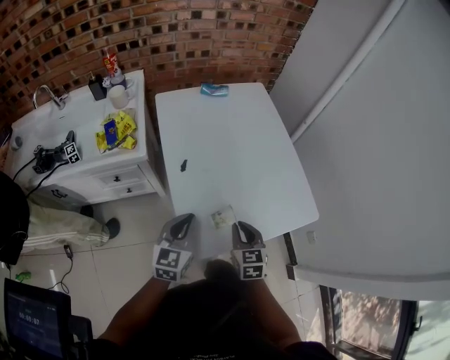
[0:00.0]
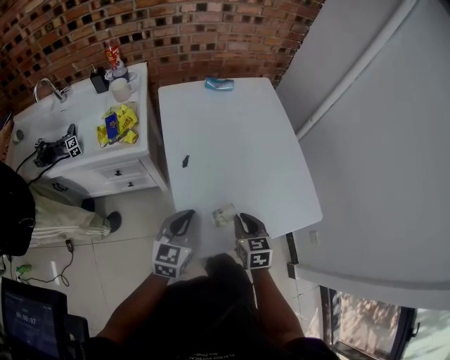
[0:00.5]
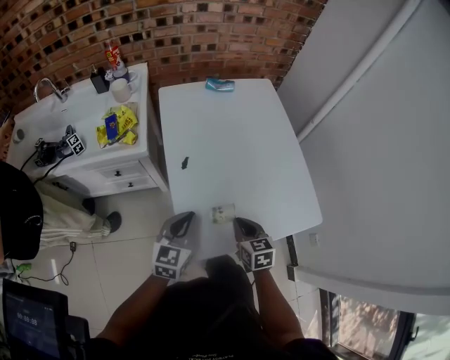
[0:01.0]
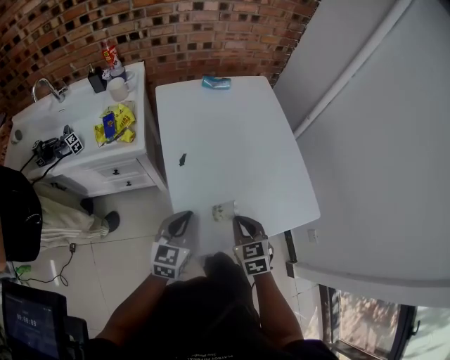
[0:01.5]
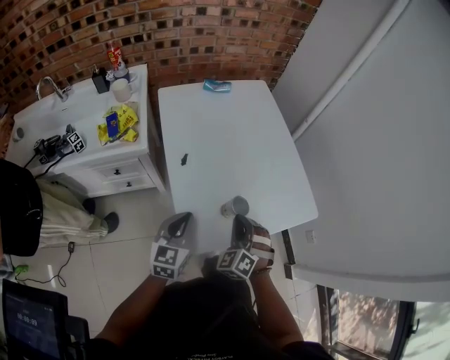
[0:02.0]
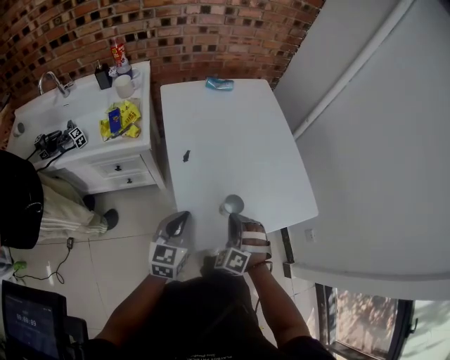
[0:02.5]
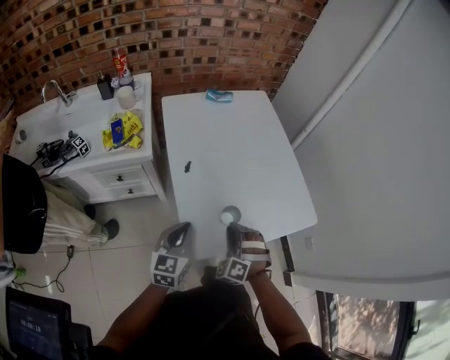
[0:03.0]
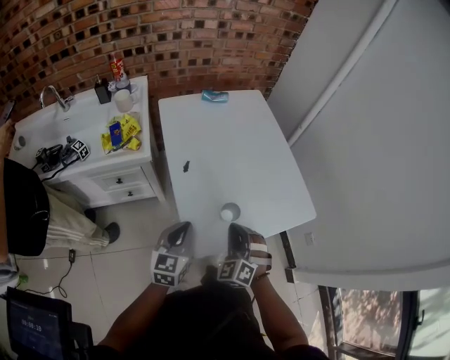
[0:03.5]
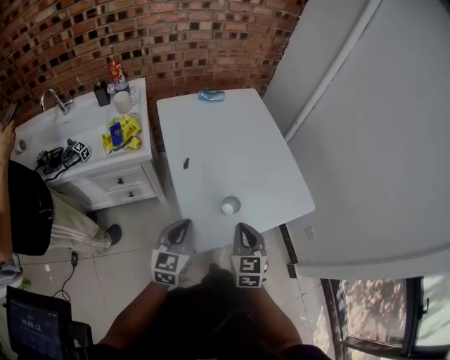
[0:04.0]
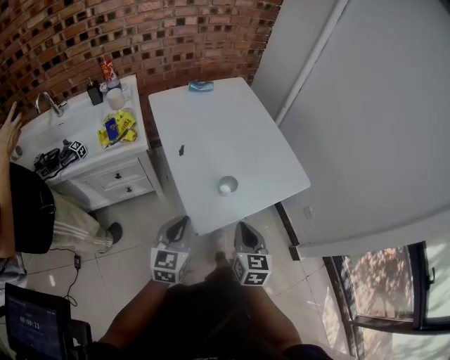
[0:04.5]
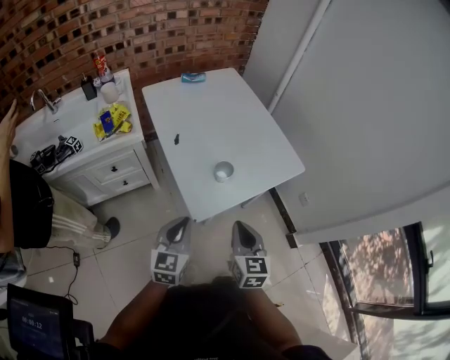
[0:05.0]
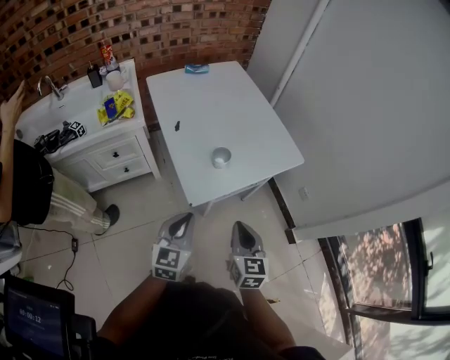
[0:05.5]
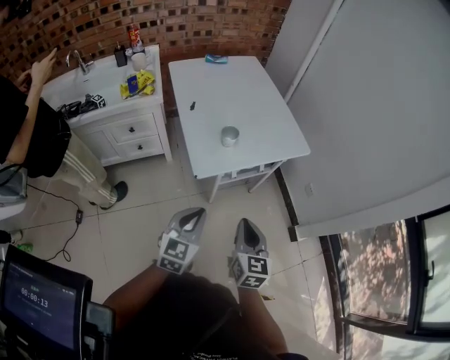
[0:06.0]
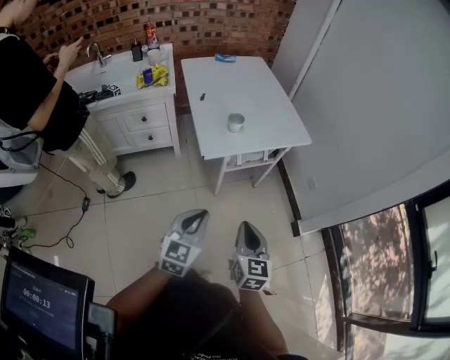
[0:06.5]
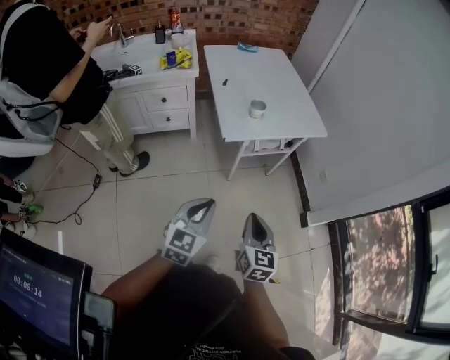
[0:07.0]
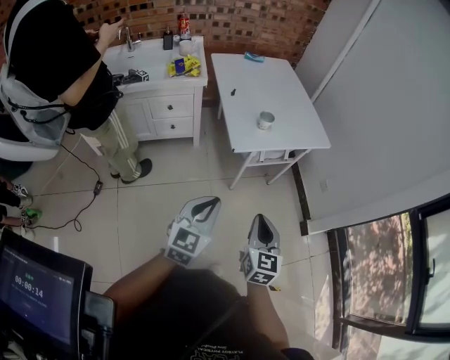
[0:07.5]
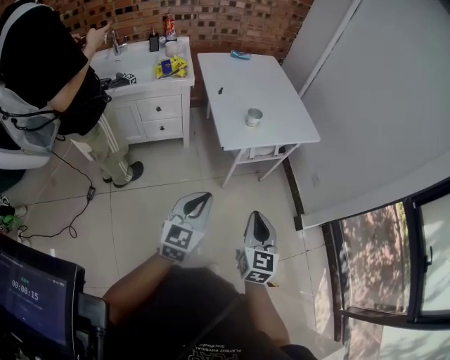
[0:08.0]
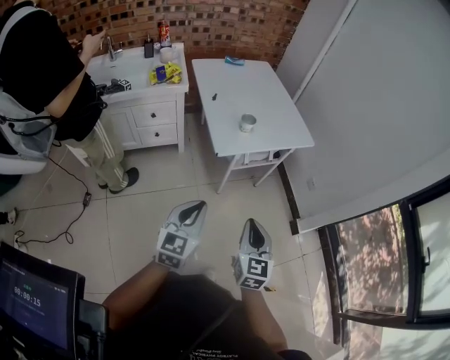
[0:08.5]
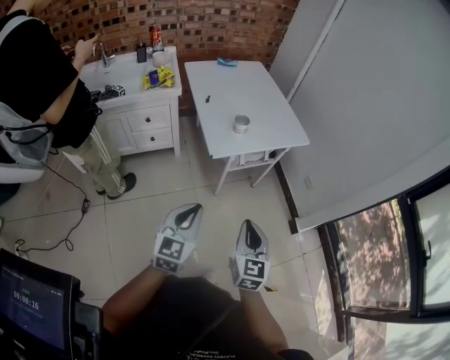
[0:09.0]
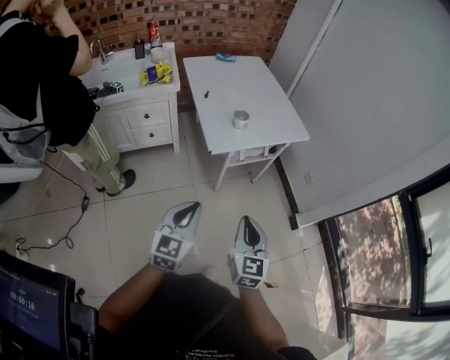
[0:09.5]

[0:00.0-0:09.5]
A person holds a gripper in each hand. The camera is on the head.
0:00.0 to 0:02.0: The right gripper rolls counterclockwise, seen from behind, by roughly 50 degrees.
0:02.0 to 0:04.0: The right gripper shifts approximately 10 cm backward and upward, and twists about 50 degrees clockwise, seen from behind. Meanwhile the left gripper shifts by some 5 cm.
0:04.0 to 0:05.5: Both grippers move backward, some 15 cm.
0:05.5 to 0:07.5: Both grippers move backward, roughly 25 cm.
0:07.5 to 0:09.5: The grippers stay close to where they were, moving slightly.

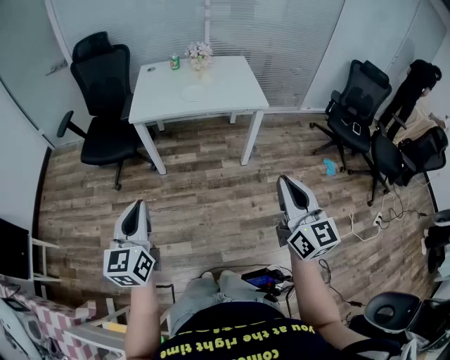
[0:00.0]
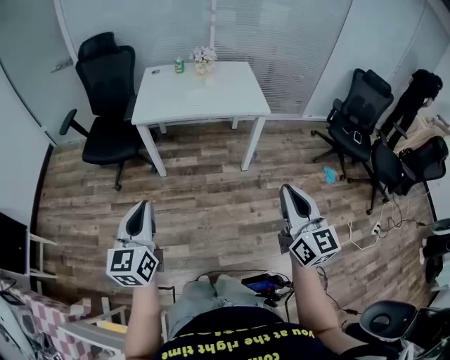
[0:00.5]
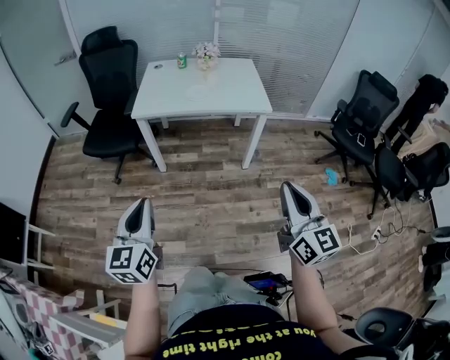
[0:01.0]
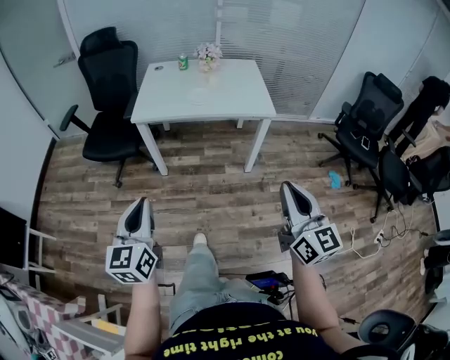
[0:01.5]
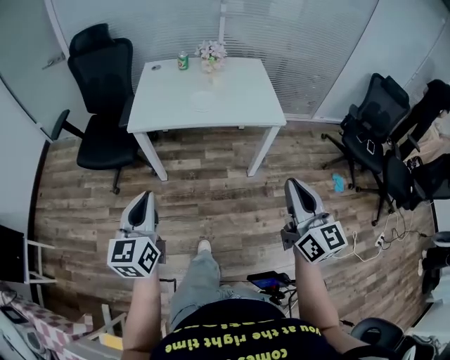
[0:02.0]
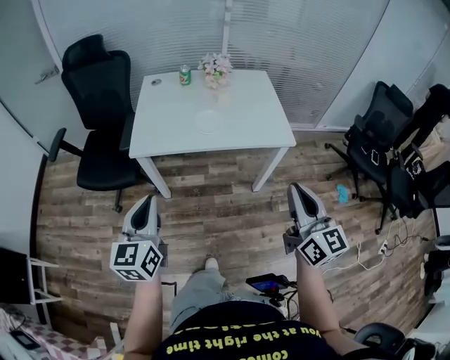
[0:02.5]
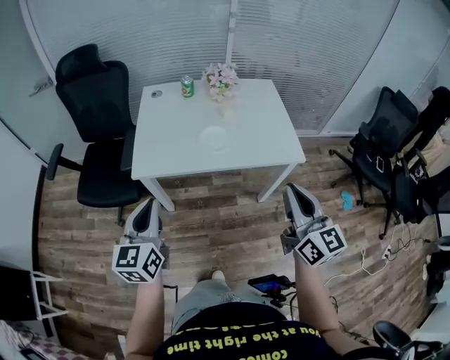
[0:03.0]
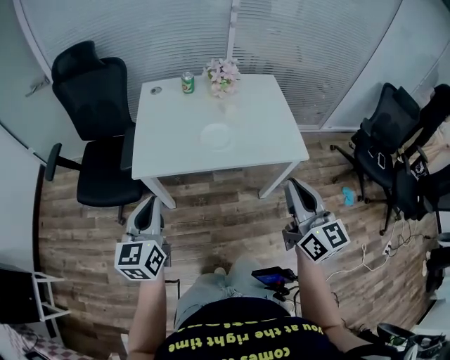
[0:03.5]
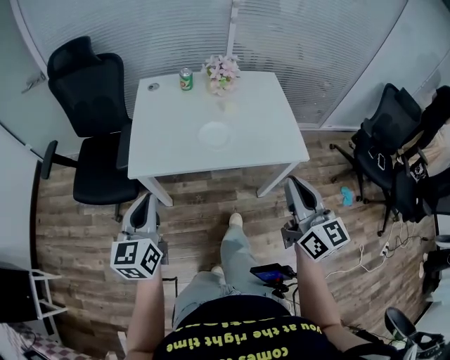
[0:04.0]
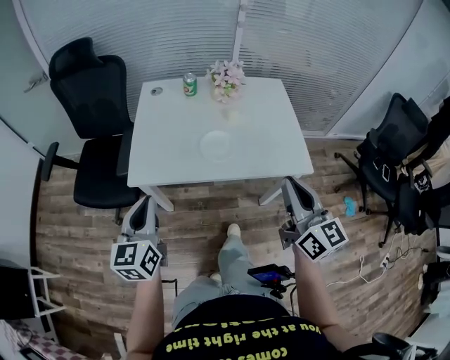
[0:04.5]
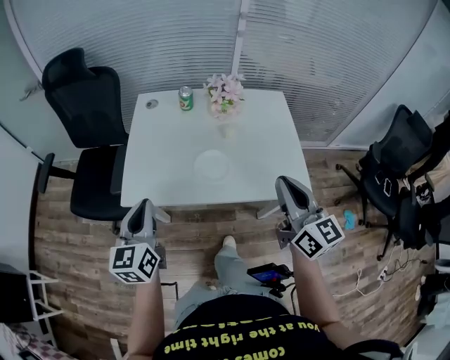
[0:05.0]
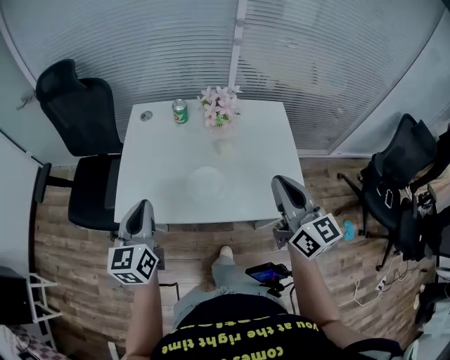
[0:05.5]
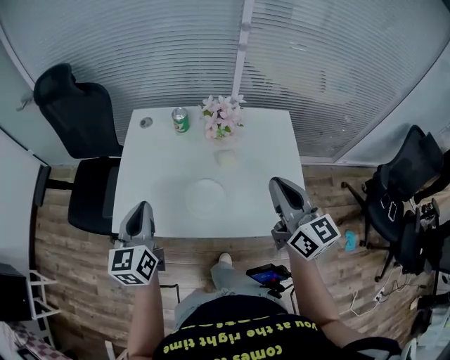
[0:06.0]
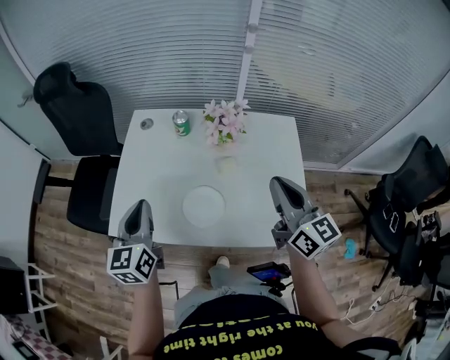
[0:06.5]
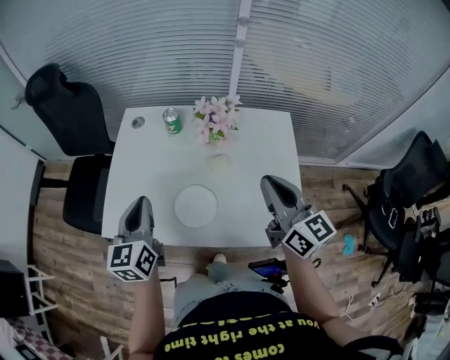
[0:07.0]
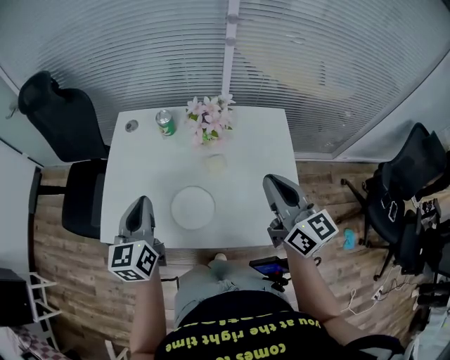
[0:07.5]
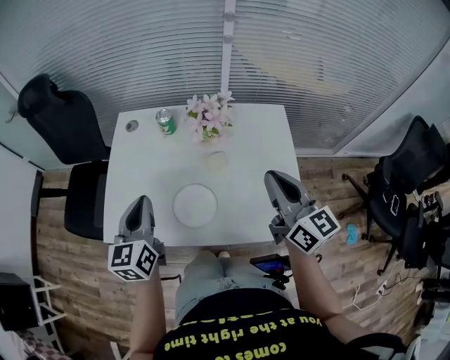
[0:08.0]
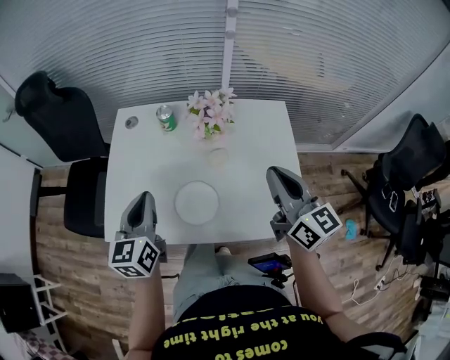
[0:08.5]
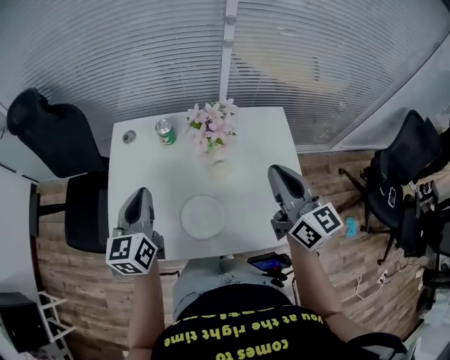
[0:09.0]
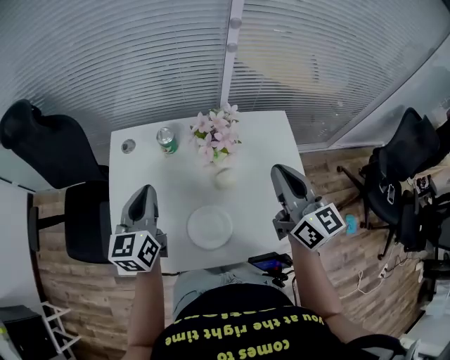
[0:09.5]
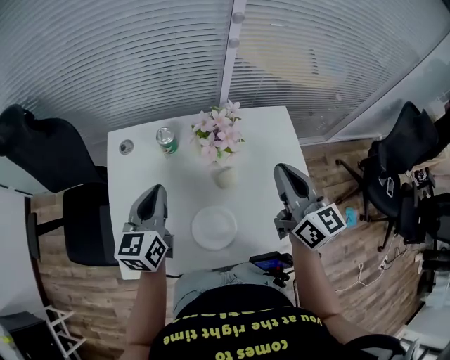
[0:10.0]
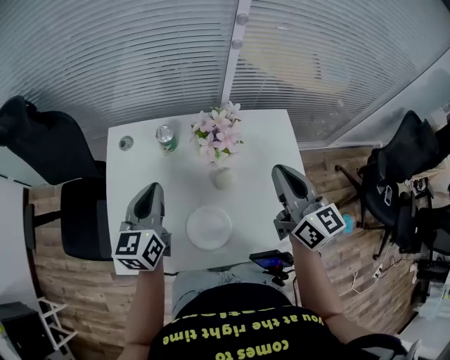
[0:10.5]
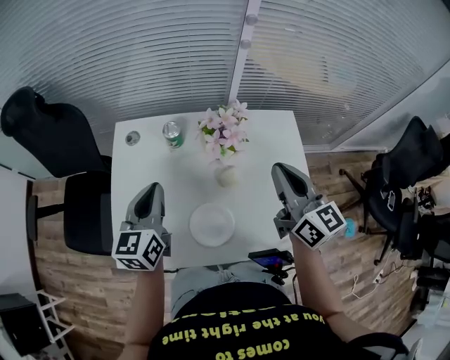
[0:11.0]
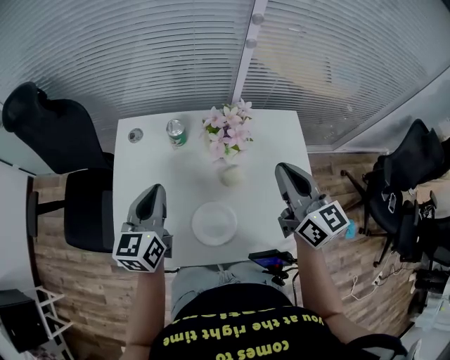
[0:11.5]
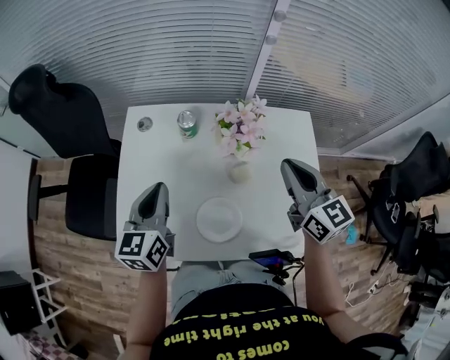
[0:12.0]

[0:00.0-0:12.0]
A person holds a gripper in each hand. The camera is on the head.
0:00.0 to 0:02.0: Both grippers travel together forward, approximately 15 cm.
0:02.0 to 0:04.0: The grippers both shift forward by approximately 25 cm.
0:04.0 to 0:06.0: The two grippers go approximately 25 cm forward.
0:06.0 to 0:08.0: The left gripper travels to the right and forward by some 5 cm. The right gripper ends up approximately 5 cm from where it was.
0:08.0 to 0:10.0: The two grippers go about 10 cm forward.
0:10.0 to 0:12.0: The grippers move only a little.

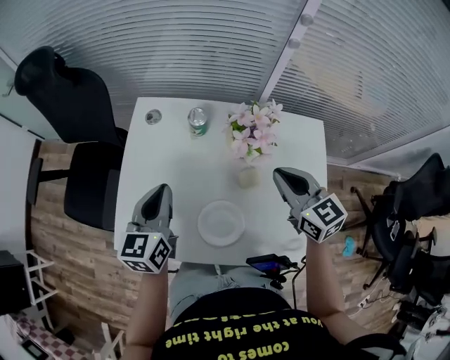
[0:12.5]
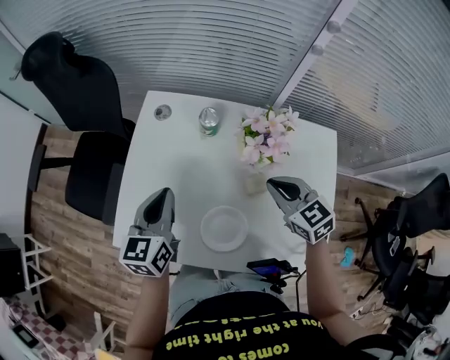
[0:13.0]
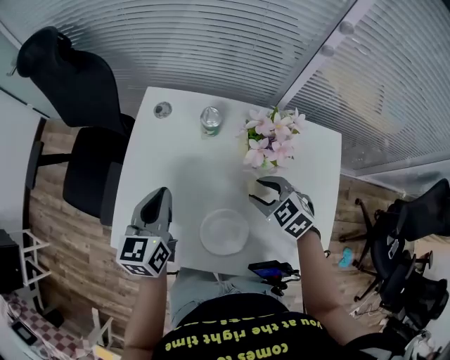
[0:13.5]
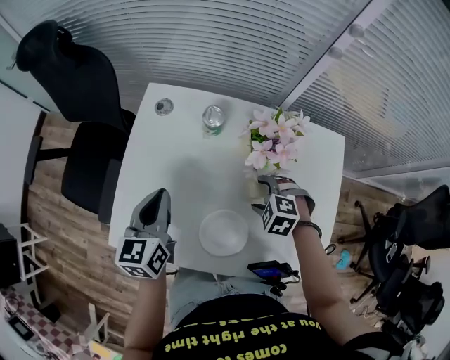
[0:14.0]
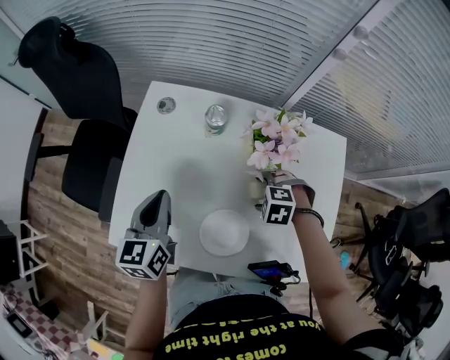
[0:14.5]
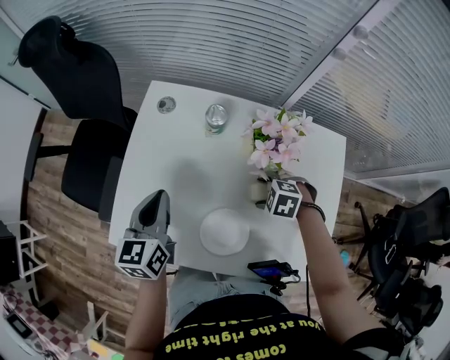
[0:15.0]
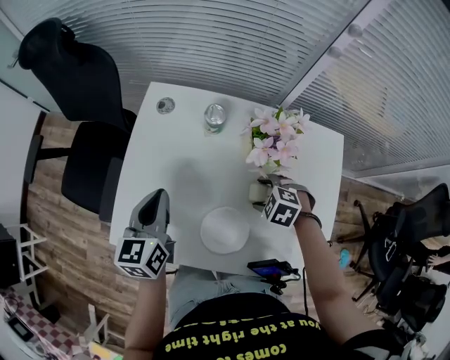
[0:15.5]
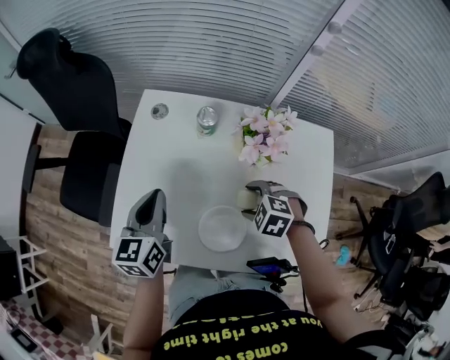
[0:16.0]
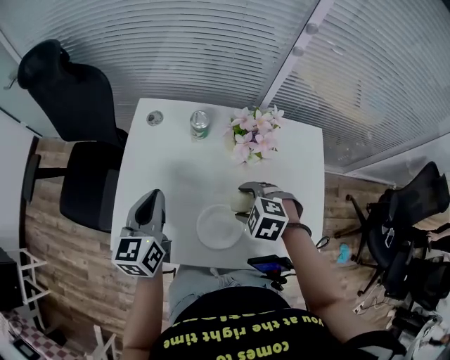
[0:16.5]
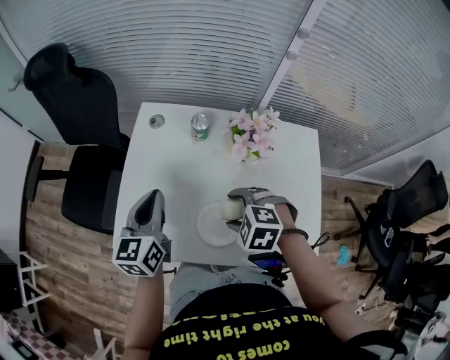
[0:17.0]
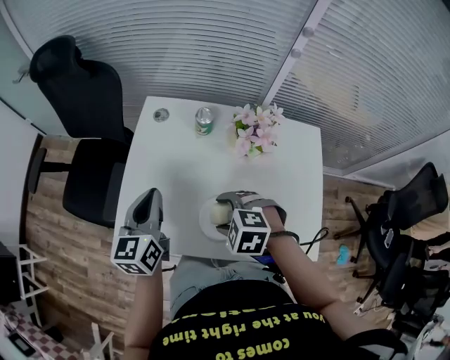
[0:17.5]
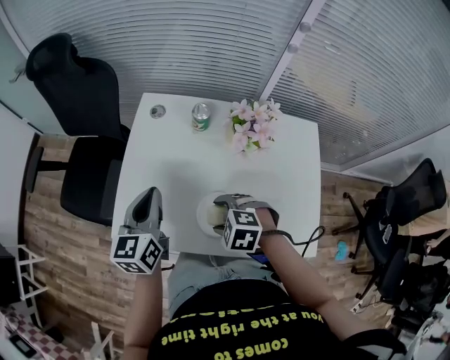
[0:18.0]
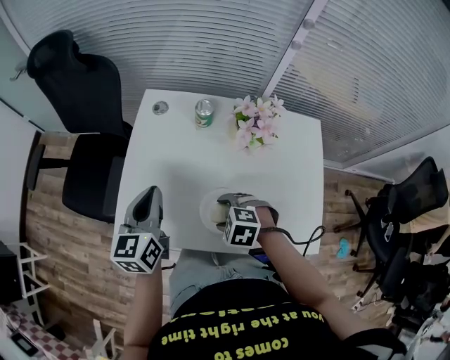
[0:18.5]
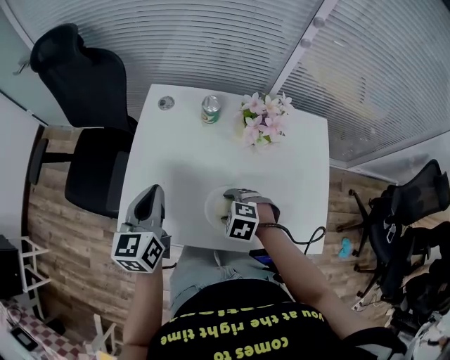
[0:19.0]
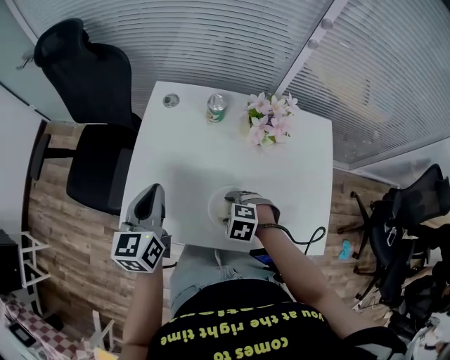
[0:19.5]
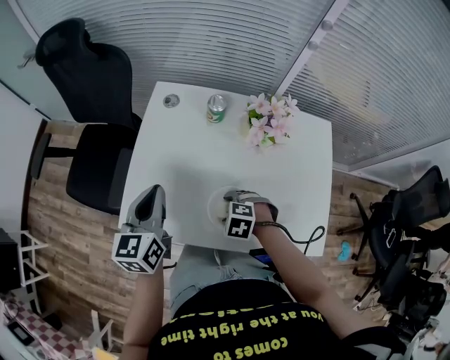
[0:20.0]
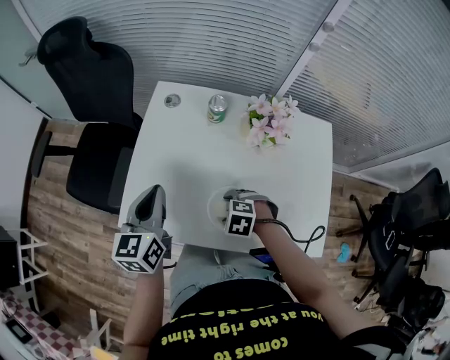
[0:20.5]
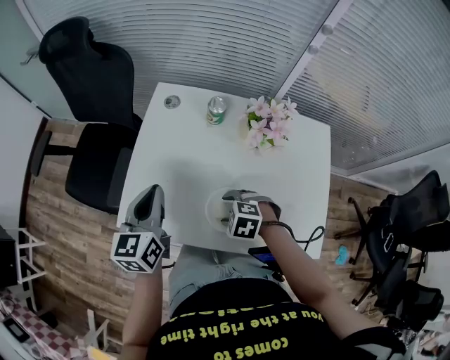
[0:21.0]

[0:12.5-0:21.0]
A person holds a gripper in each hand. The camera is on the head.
0:12.5 to 0:14.5: The left gripper changes place by about 5 cm. The right gripper goes about 20 cm downward, tilts its fingers approximately 60 degrees downward, and opens.
0:14.5 to 0:16.5: The right gripper is displaced upward by roughly 10 cm.
0:16.5 to 0:19.0: The right gripper moves to the left and downward, about 10 cm. Meanwhile the left gripper changes place by approximately 5 cm.
0:19.0 to 0:21.0: The grippers make only small movements.
